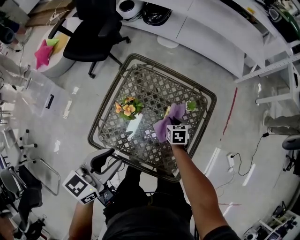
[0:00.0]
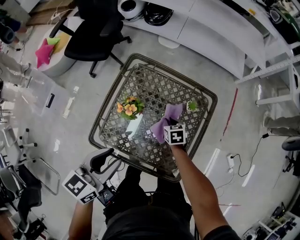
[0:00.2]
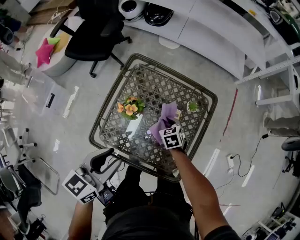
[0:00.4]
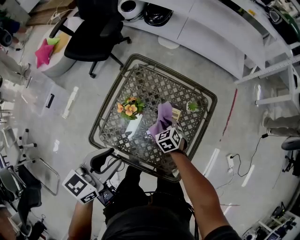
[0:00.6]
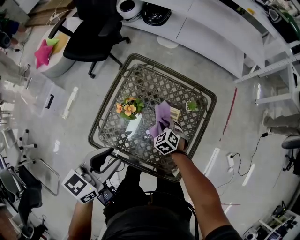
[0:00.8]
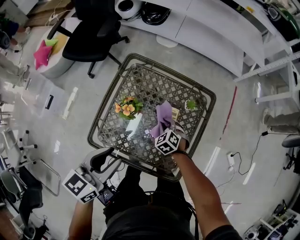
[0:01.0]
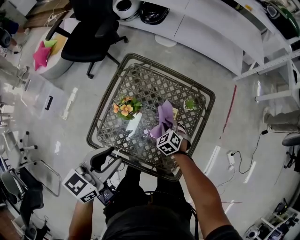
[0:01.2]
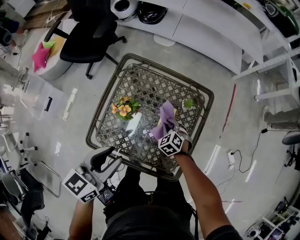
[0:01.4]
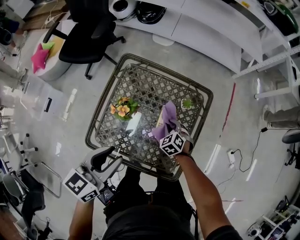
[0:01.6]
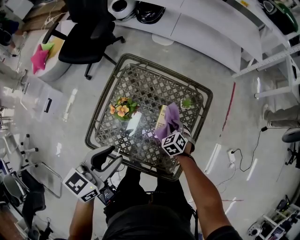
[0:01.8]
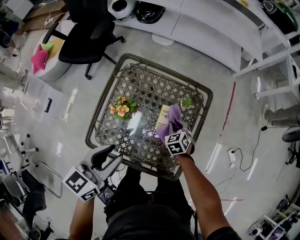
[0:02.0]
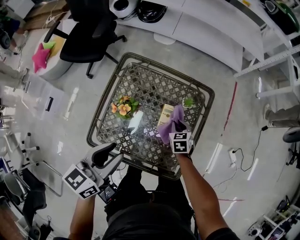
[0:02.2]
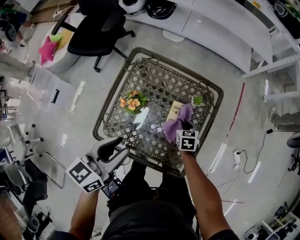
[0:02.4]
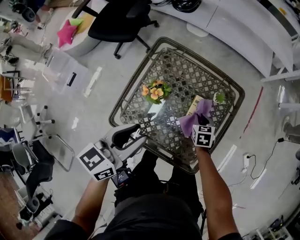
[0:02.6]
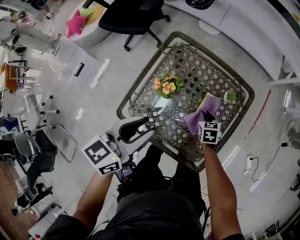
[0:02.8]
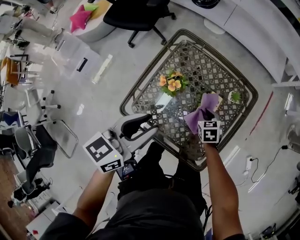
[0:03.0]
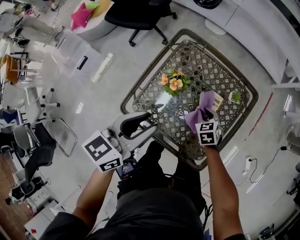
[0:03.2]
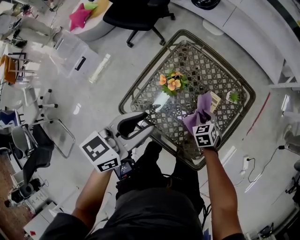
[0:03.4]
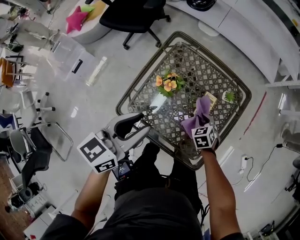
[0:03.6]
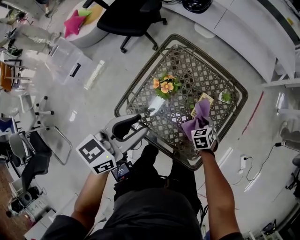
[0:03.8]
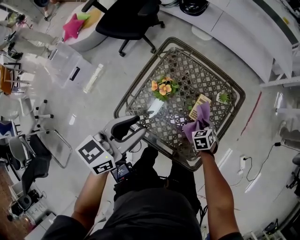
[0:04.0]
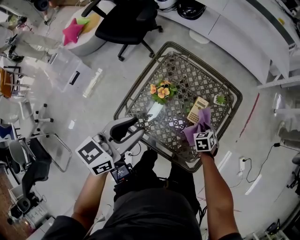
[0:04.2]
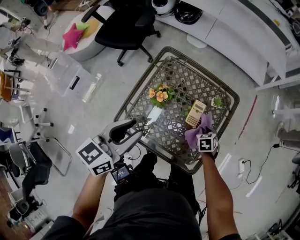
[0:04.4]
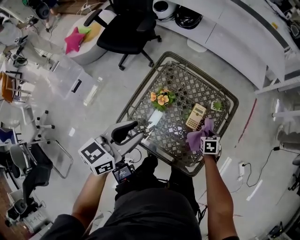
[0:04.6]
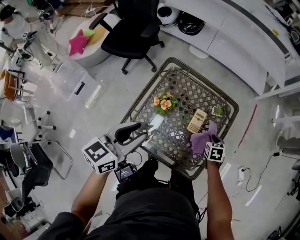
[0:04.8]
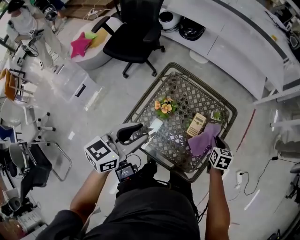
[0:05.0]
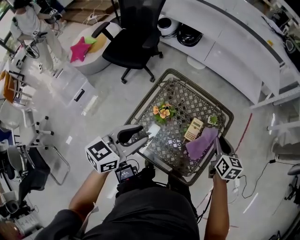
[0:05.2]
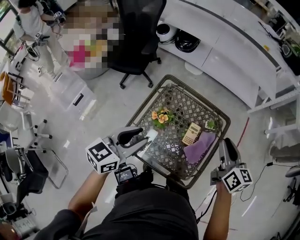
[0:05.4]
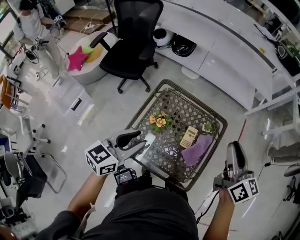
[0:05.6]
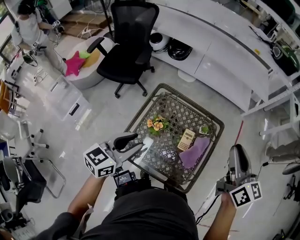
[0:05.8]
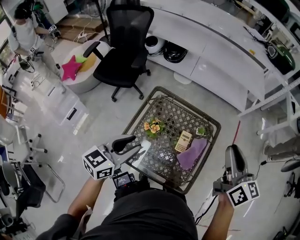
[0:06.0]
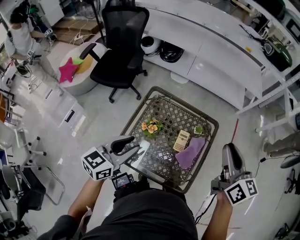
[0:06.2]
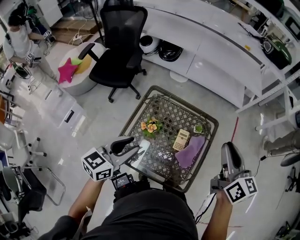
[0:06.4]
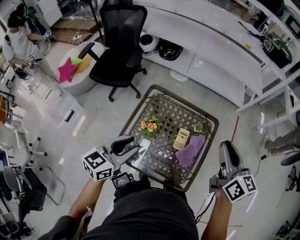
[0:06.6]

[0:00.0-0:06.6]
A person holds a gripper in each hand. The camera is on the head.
0:00.0 to 0:01.6: The right gripper twists about 40 degrees counterclockwise, seen from behind.
0:01.6 to 0:03.2: Both grippers travel together to the left, roughly 5 cm.
0:03.2 to 0:05.0: The left gripper travels upward by approximately 5 cm; the right gripper heads to the right and upward, covering about 20 cm, and turns by approximately 30 degrees.
0:05.0 to 0:06.6: The right gripper travels upward by roughly 35 cm, and tilts its fingers approximately 40 degrees upward.

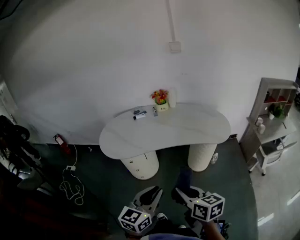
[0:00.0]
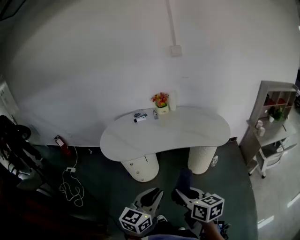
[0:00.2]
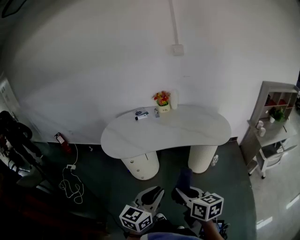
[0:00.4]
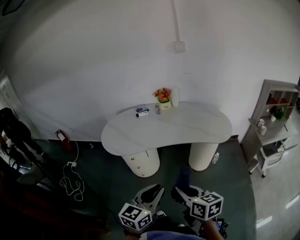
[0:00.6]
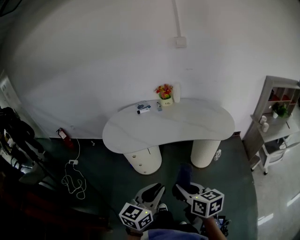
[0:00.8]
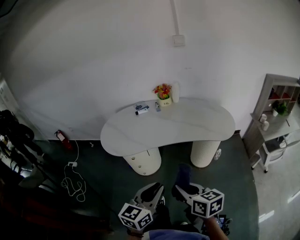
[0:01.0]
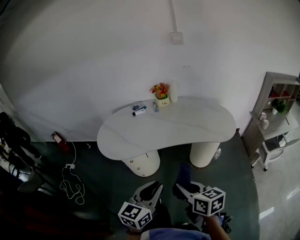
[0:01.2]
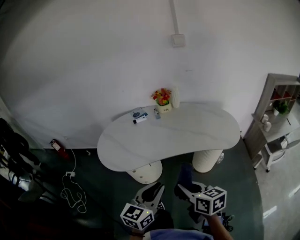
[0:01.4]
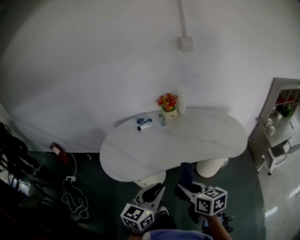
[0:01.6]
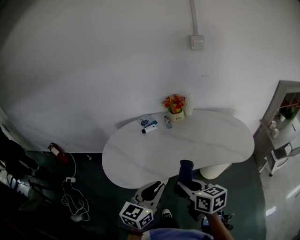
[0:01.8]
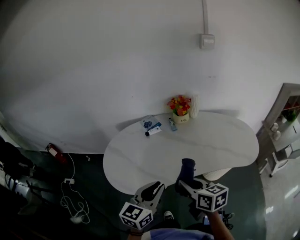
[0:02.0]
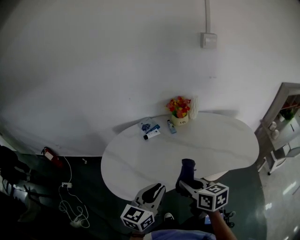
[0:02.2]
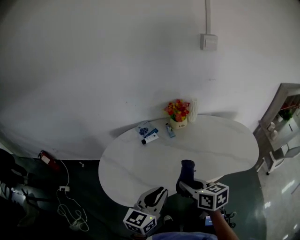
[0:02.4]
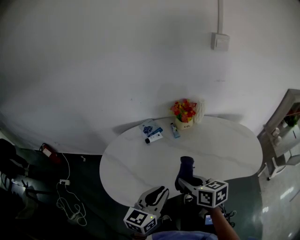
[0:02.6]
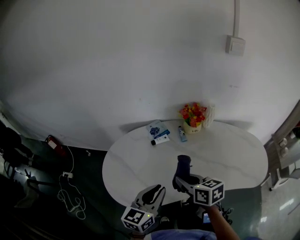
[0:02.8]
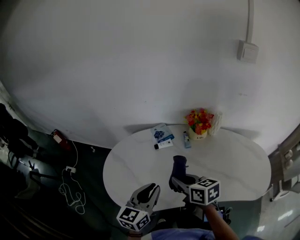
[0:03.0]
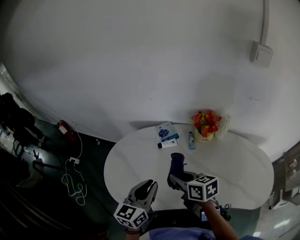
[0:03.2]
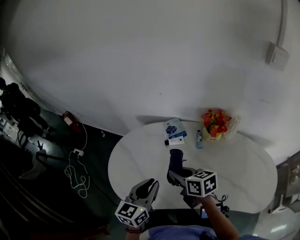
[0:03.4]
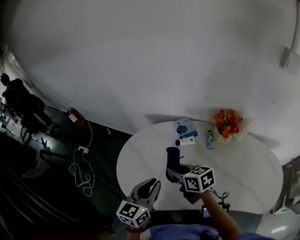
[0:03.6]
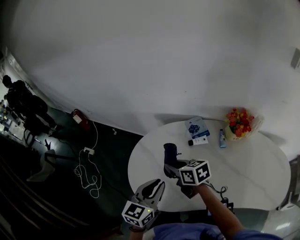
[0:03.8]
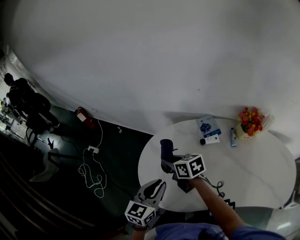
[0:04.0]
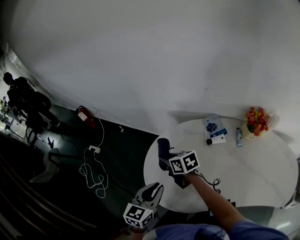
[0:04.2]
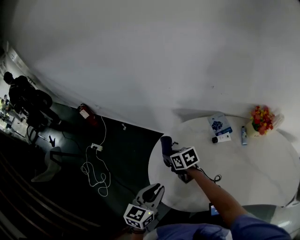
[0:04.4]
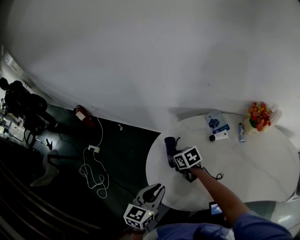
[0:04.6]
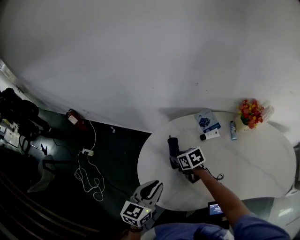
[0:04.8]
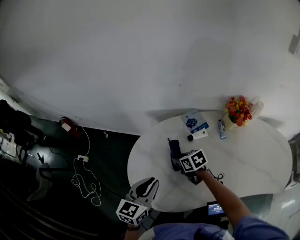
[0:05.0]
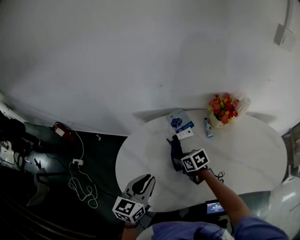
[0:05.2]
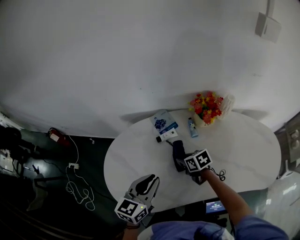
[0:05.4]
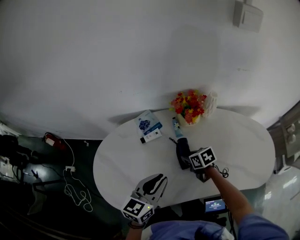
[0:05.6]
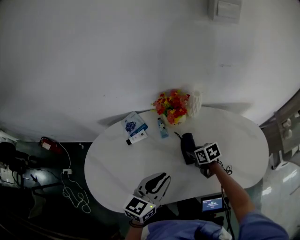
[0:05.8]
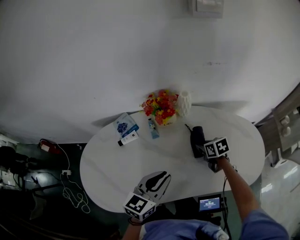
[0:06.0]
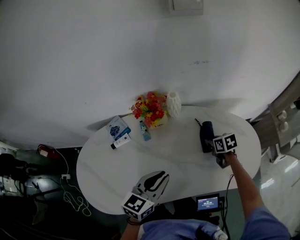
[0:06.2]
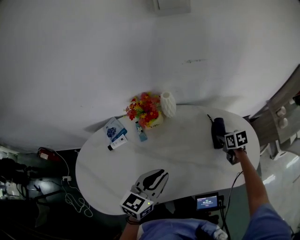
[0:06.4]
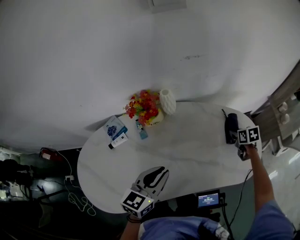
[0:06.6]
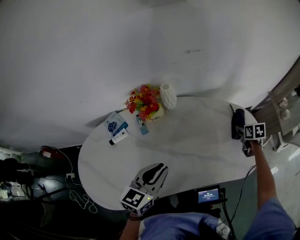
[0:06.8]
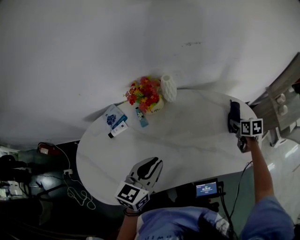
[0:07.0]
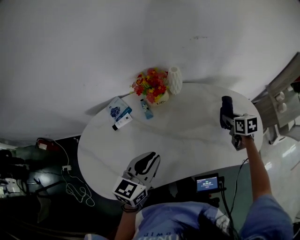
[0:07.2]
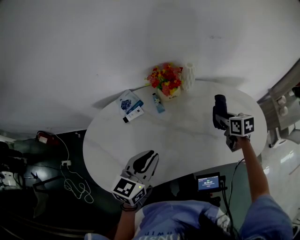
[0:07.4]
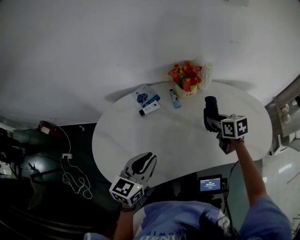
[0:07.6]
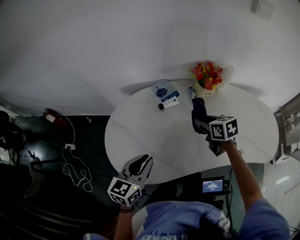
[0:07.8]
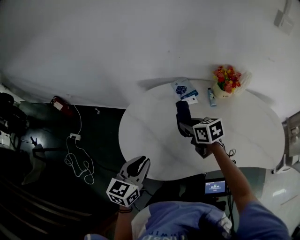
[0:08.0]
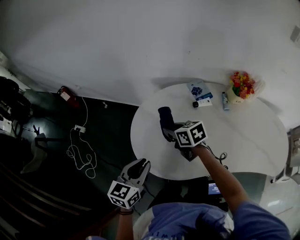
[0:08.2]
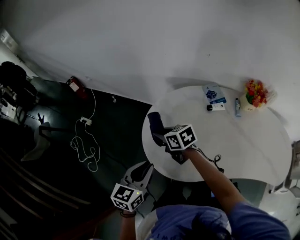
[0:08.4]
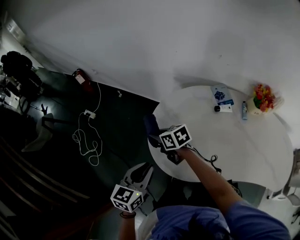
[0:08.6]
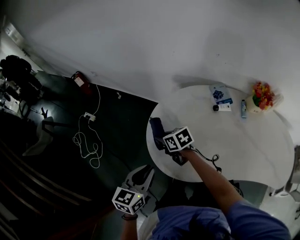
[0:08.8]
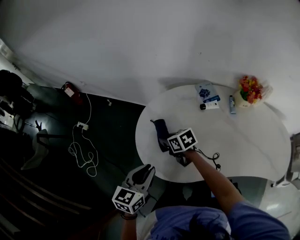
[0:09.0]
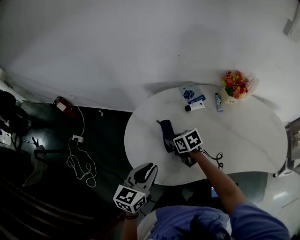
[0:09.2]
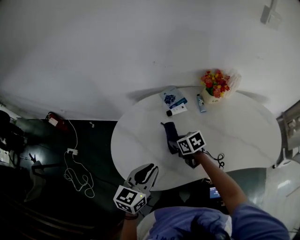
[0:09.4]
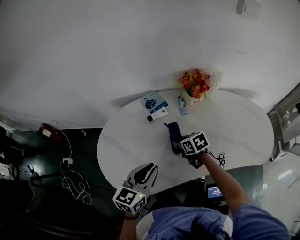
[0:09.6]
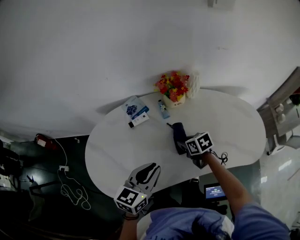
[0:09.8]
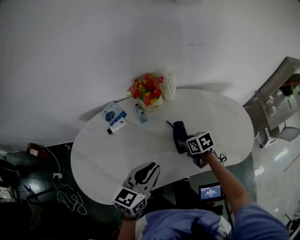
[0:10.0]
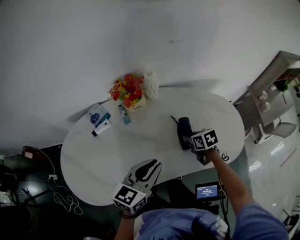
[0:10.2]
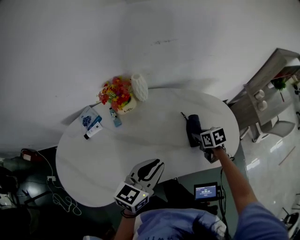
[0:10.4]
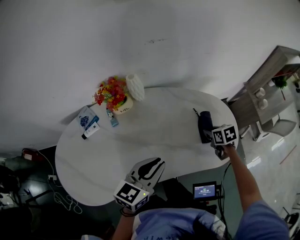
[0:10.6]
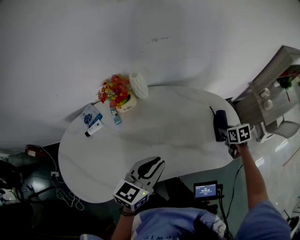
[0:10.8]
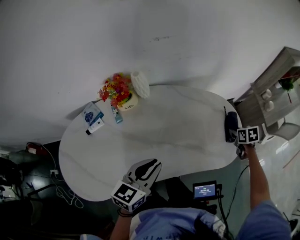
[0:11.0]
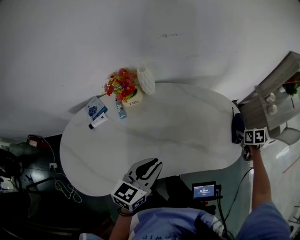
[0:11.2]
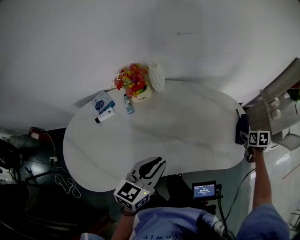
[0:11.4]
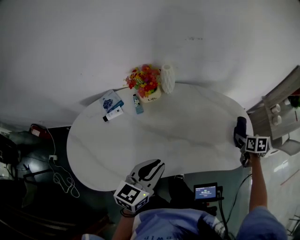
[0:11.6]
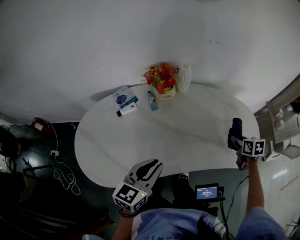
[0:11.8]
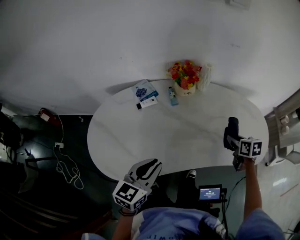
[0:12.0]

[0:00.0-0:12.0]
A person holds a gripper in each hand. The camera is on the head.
0:00.0 to 0:01.6: The two grippers go about 20 cm forward.
0:01.6 to 0:03.0: The left gripper goes approximately 30 cm forward and to the left, while the right gripper heads forward, covering about 30 cm.
0:03.0 to 0:04.4: The right gripper is displaced to the left, forward and downward by roughly 40 cm, and swivels some 30 degrees, while the left gripper travels to the left and forward by some 25 cm.
0:04.4 to 0:06.0: The pair of grippers is taken some 60 cm. The right gripper rotates approximately 30 degrees, while the left gripper swivels roughly 30 degrees.
0:06.0 to 0:07.6: The left gripper travels to the left and backward by approximately 20 cm. The right gripper heads upward and backward, covering about 10 cm, and moves some 30 cm to the right and comes back.
0:07.6 to 0:09.0: The right gripper ends up roughly 50 cm from where it was, and rotates roughly 40 degrees; the left gripper moves approximately 30 cm, and changes its angle by some 20 degrees.
0:09.0 to 0:10.4: The pair of grippers is taken about 70 cm. The right gripper changes its angle by approximately 50 degrees. Meanwhile the left gripper turns by roughly 40 degrees.
0:10.4 to 0:12.0: The left gripper travels to the left and backward by roughly 25 cm; the right gripper is displaced backward and upward by approximately 10 cm, and travels to the right and back again, approximately 25 cm each way.

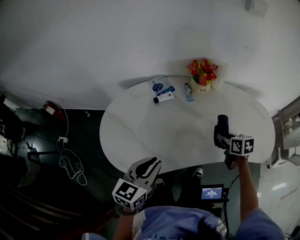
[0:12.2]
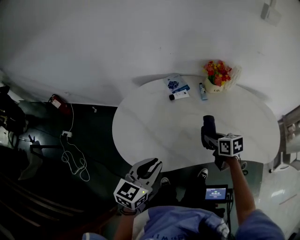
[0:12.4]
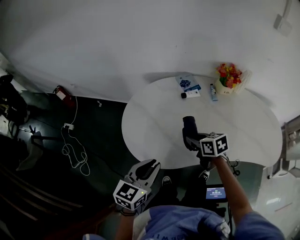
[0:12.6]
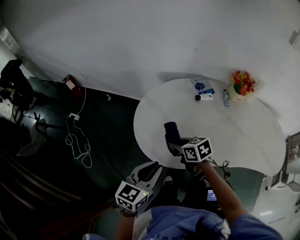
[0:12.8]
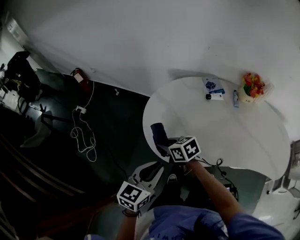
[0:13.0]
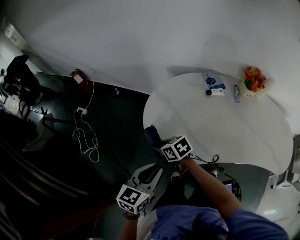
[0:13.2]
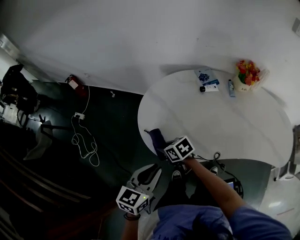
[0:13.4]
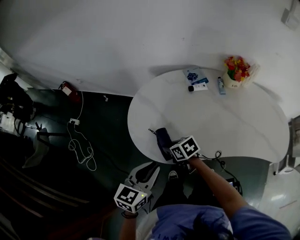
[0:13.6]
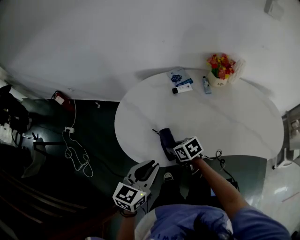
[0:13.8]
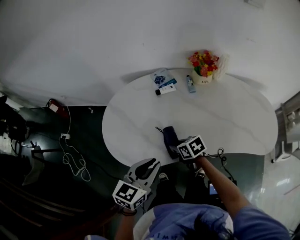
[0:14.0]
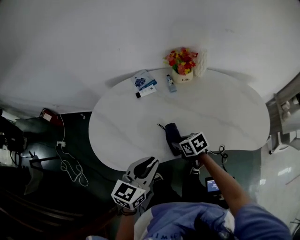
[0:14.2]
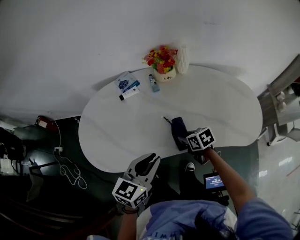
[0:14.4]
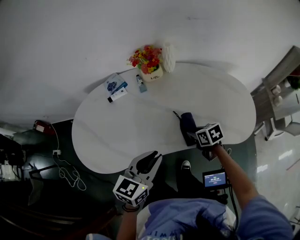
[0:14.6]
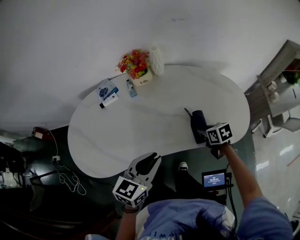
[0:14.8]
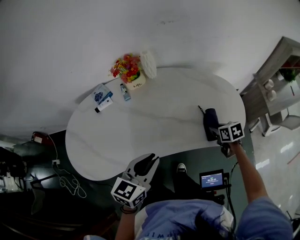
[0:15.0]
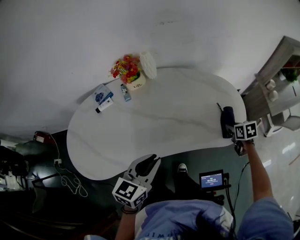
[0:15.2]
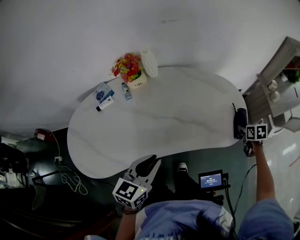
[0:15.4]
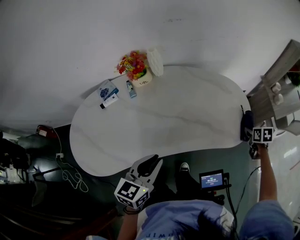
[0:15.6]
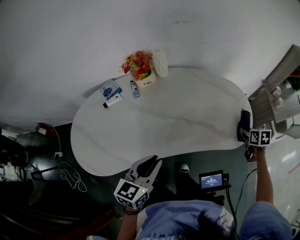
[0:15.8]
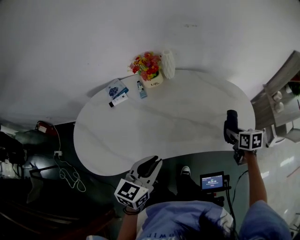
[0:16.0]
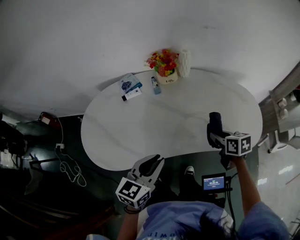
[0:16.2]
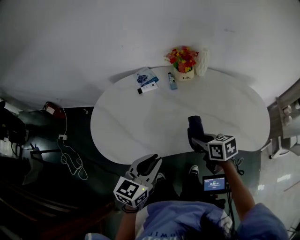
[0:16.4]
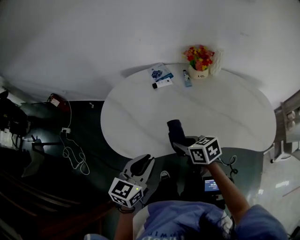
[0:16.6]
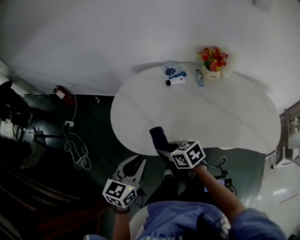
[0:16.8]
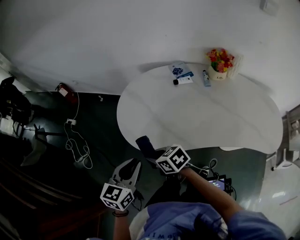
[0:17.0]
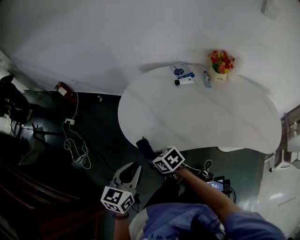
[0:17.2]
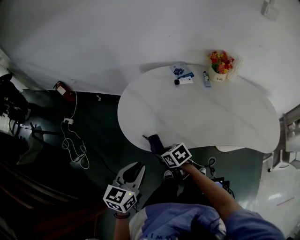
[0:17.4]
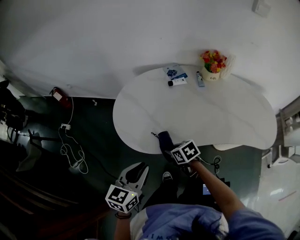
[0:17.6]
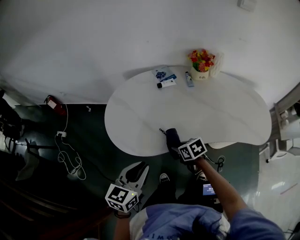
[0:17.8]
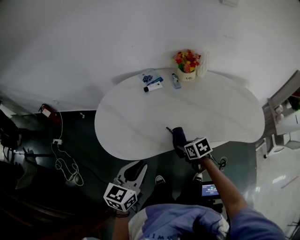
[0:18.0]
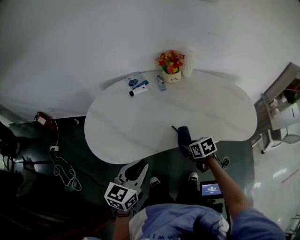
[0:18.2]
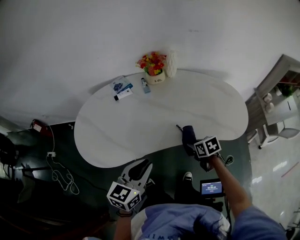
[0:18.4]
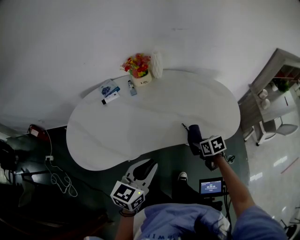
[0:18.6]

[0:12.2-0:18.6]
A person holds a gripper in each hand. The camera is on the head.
0:12.2 to 0:13.8: The right gripper turns by roughly 30 degrees.
0:13.8 to 0:15.4: The right gripper shifts by some 80 cm, and swivels some 50 degrees. The left gripper ends up approximately 40 cm from where it was.
0:15.4 to 0:17.0: Both grippers are carried about 70 cm. The right gripper turns by approximately 70 degrees. The left gripper changes its angle by approximately 30 degrees.
0:17.0 to 0:18.6: The right gripper changes place by about 60 cm, and changes its angle by about 50 degrees; the left gripper changes place by approximately 40 cm, and rotates roughly 30 degrees.
